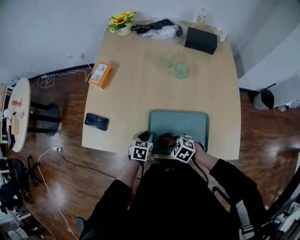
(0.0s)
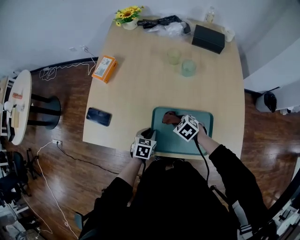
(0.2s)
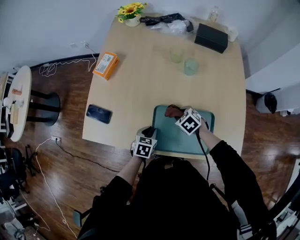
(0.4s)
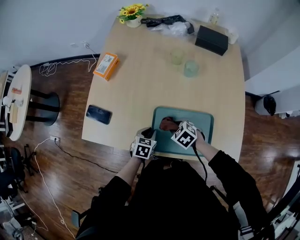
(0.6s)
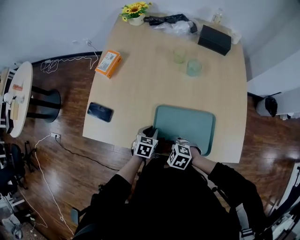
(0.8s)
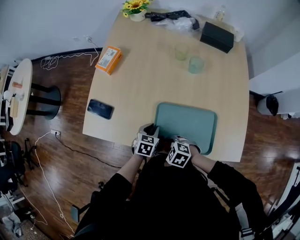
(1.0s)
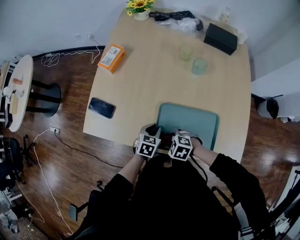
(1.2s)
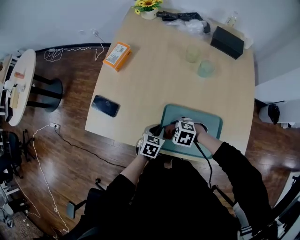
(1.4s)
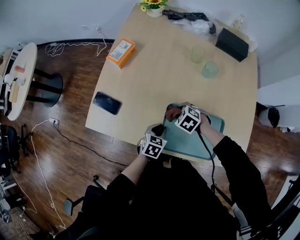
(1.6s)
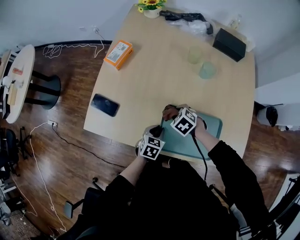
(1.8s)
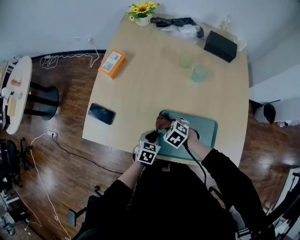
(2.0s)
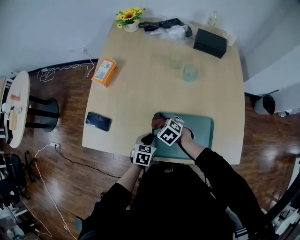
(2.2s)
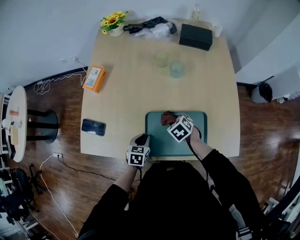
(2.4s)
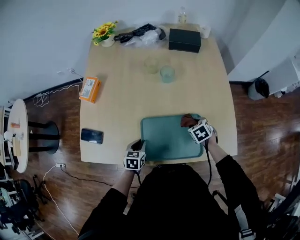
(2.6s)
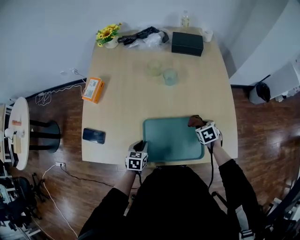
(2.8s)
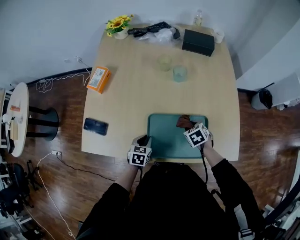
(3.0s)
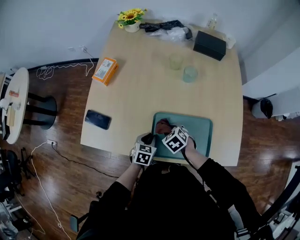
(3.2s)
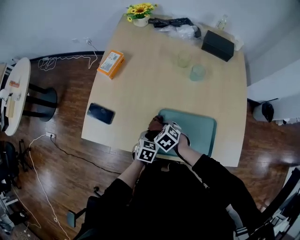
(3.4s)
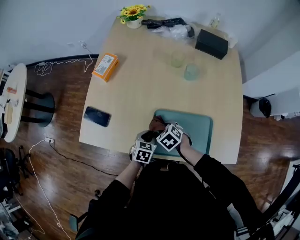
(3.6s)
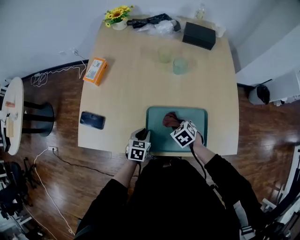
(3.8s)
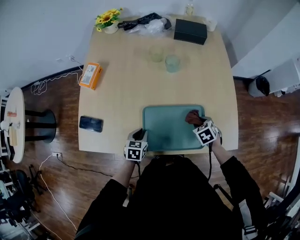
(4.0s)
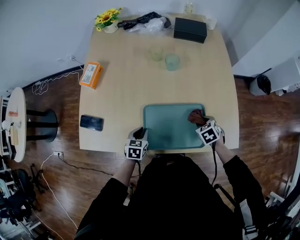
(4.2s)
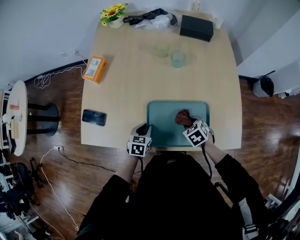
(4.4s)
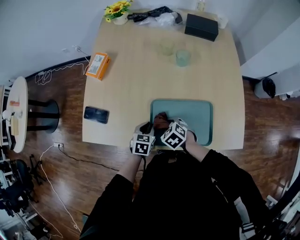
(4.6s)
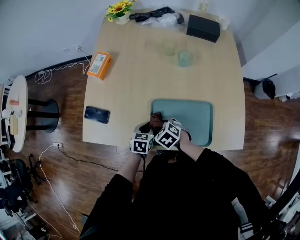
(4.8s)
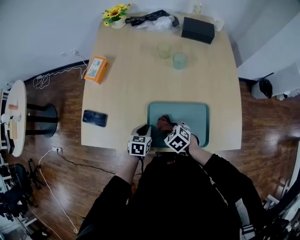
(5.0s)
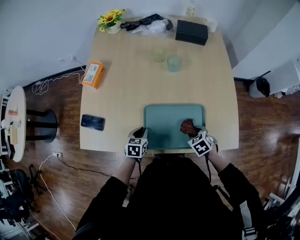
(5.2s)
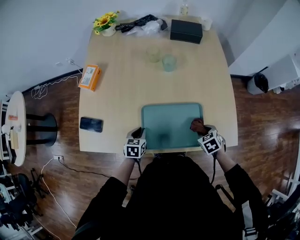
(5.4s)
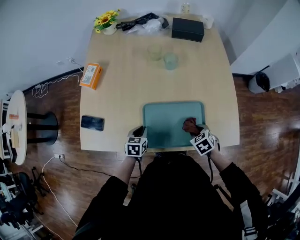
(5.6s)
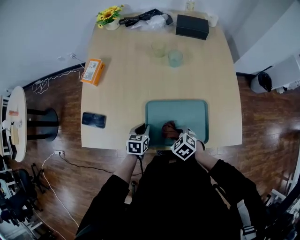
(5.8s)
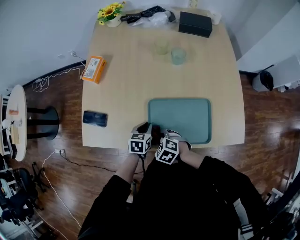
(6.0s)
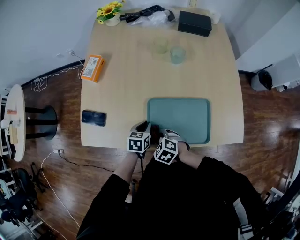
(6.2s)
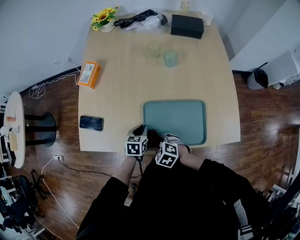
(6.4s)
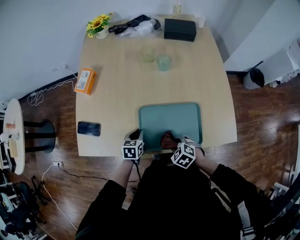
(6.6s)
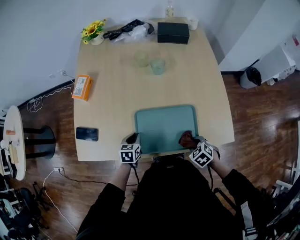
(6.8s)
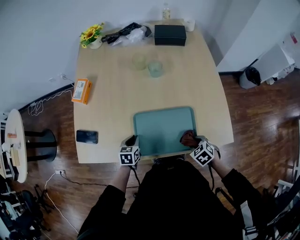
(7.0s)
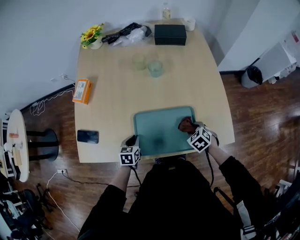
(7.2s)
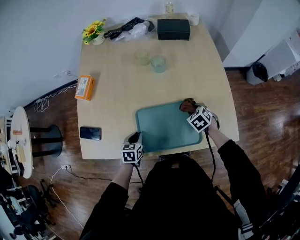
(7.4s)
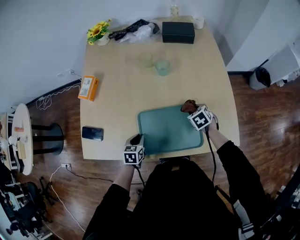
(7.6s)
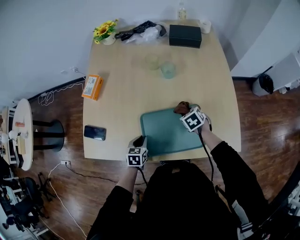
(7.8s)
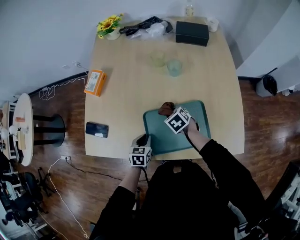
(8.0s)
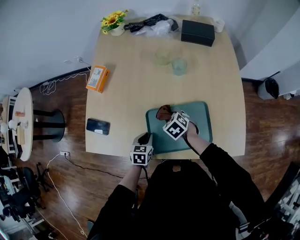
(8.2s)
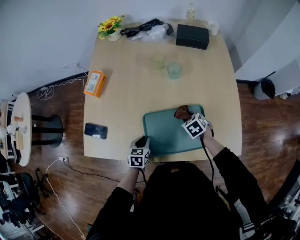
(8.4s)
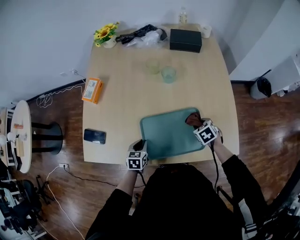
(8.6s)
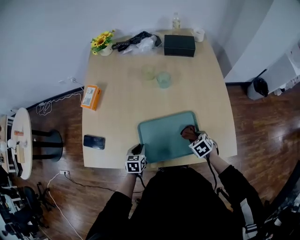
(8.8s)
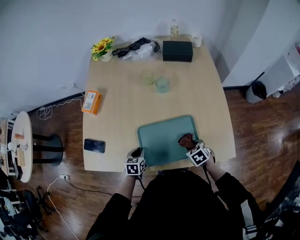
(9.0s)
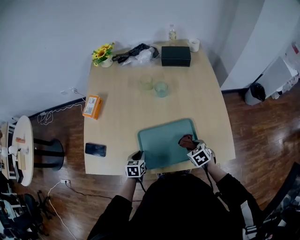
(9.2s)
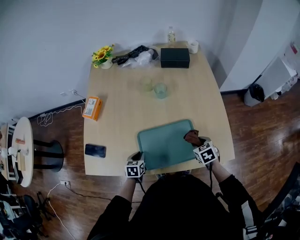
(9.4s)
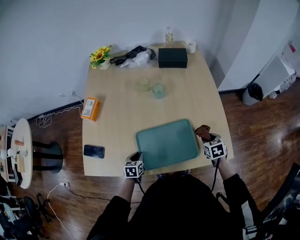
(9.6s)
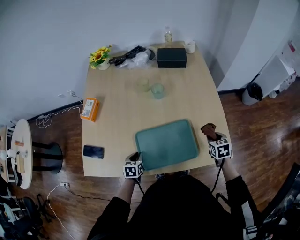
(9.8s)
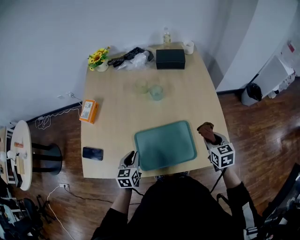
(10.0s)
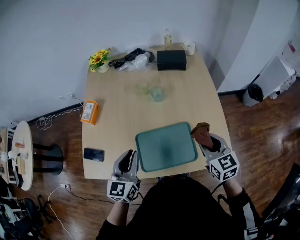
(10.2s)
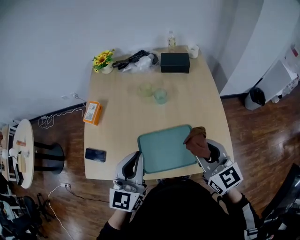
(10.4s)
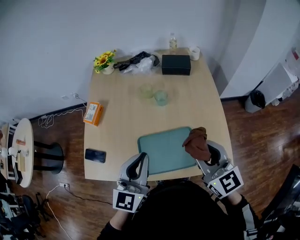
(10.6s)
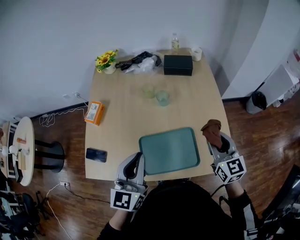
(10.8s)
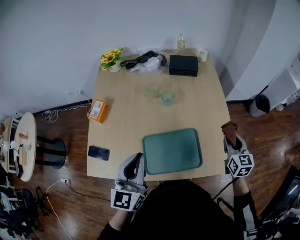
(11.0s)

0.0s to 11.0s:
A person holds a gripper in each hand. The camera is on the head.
0.0s to 1.6s: The right gripper swings forward and backward, approximately 15 cm each way, with 2 reversals.
1.6s to 3.2s: The right gripper rotates some 20 degrees.
3.2s to 4.8s: The right gripper swings left and right, some 30 cm each way, with 2 reversals.
4.8s to 6.2s: The right gripper shifts about 5 cm backward, and travels to the right and back again, roughly 25 cm each way.
6.2s to 7.8s: The right gripper shifts roughly 30 cm to the right and forward, and rotates approximately 30 degrees.
7.8s to 9.4s: The right gripper moves backward, about 10 cm, and reaches some 15 cm to the left, then returns.
9.4s to 11.0s: The right gripper travels upward and to the right by about 20 cm, and tips its fingers upward by about 30 degrees. Meanwhile the left gripper travels upward by about 35 cm, and tilts its fingers some 50 degrees upward.

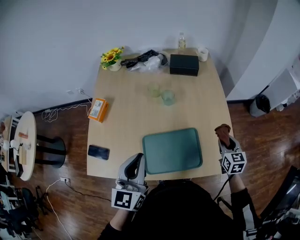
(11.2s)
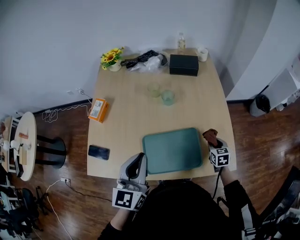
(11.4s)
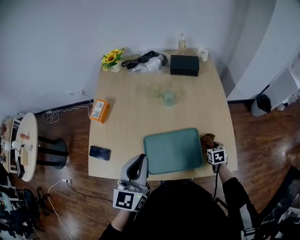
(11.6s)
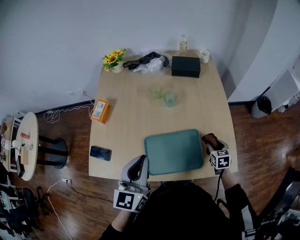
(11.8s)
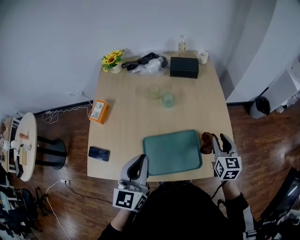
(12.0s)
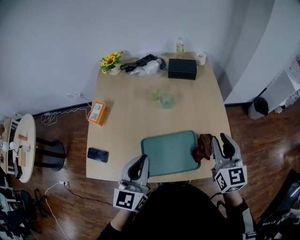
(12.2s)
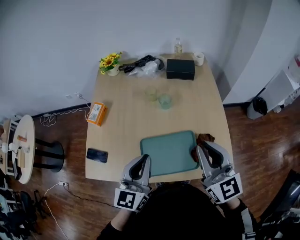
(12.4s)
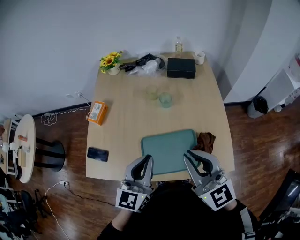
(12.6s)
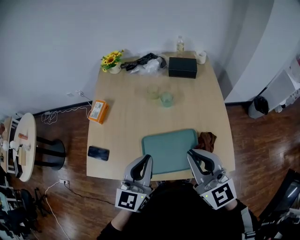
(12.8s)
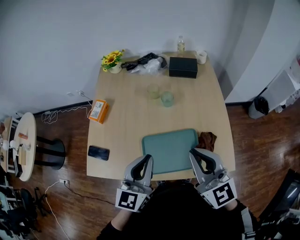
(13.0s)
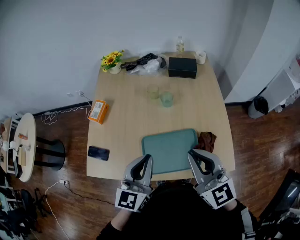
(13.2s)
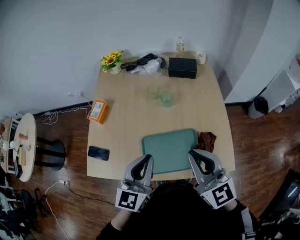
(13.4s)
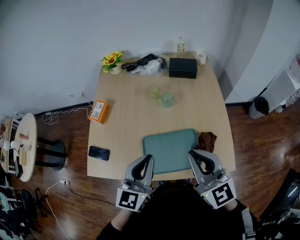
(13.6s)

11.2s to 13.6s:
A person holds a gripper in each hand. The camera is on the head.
11.2s to 12.4s: The right gripper heads upward and to the left, covering approximately 30 cm, and changes its angle by some 30 degrees.
12.4s to 13.6s: The right gripper changes place by roughly 5 cm.

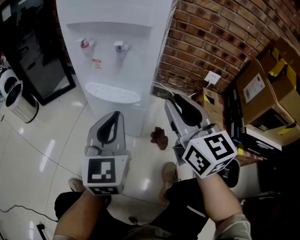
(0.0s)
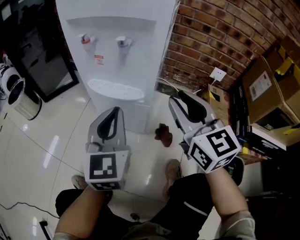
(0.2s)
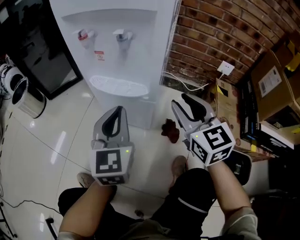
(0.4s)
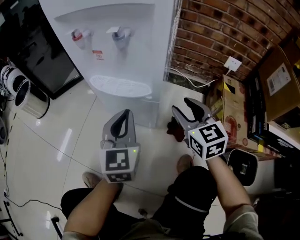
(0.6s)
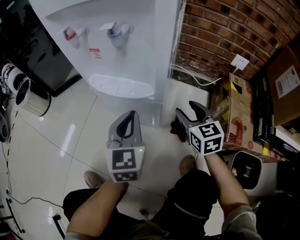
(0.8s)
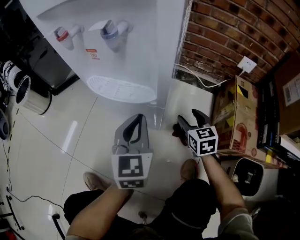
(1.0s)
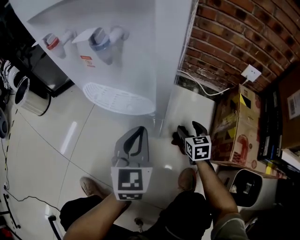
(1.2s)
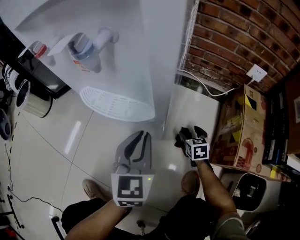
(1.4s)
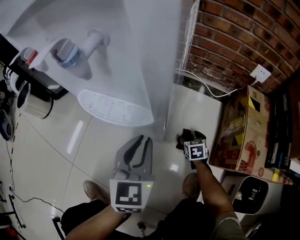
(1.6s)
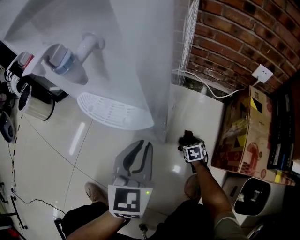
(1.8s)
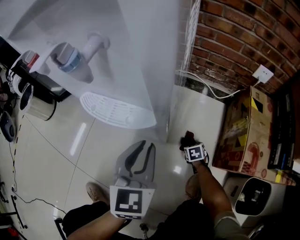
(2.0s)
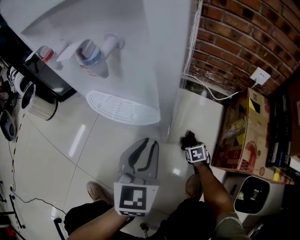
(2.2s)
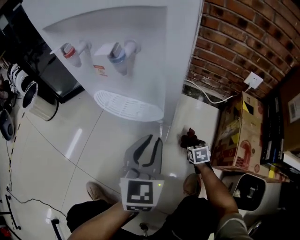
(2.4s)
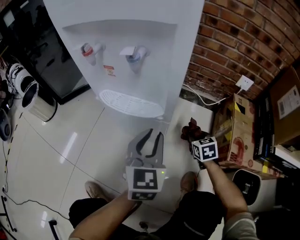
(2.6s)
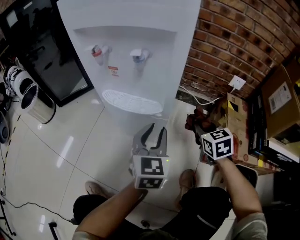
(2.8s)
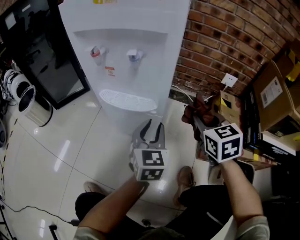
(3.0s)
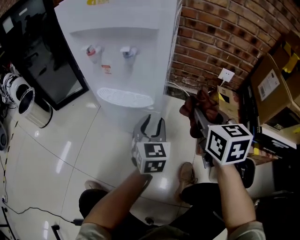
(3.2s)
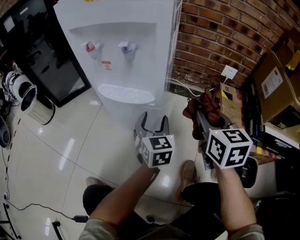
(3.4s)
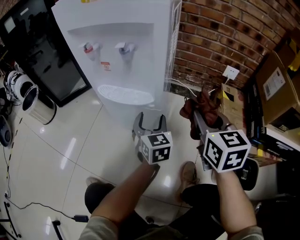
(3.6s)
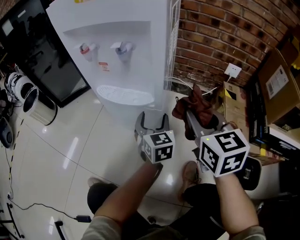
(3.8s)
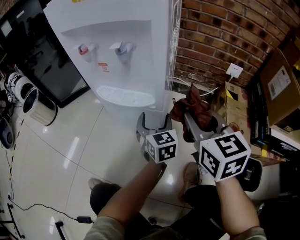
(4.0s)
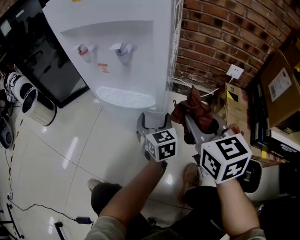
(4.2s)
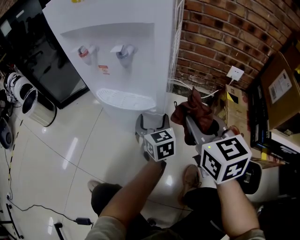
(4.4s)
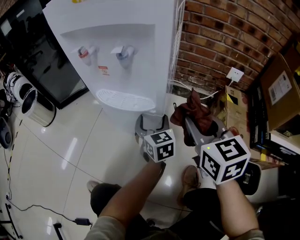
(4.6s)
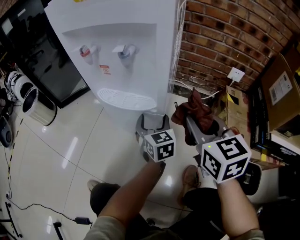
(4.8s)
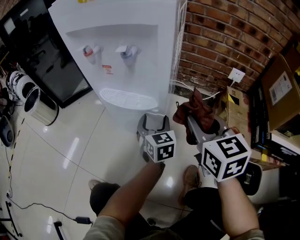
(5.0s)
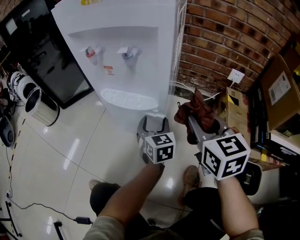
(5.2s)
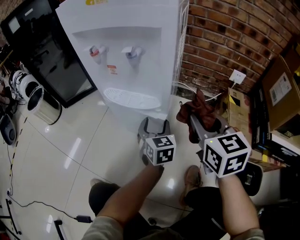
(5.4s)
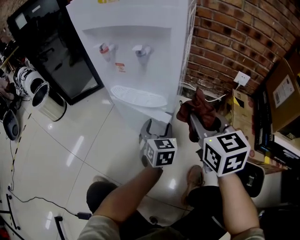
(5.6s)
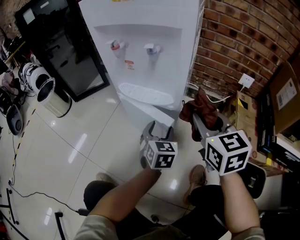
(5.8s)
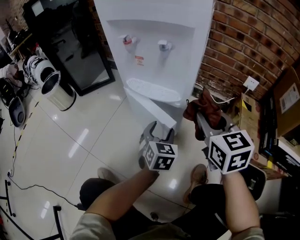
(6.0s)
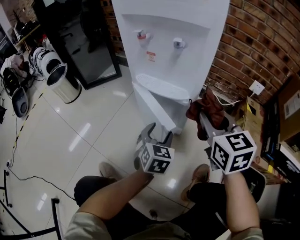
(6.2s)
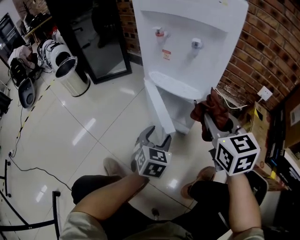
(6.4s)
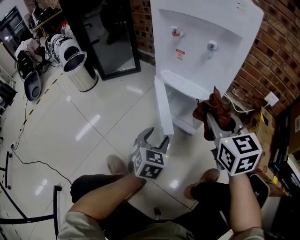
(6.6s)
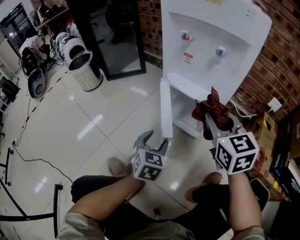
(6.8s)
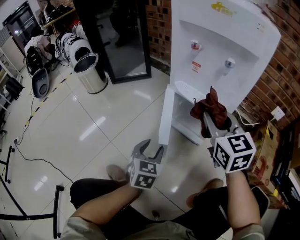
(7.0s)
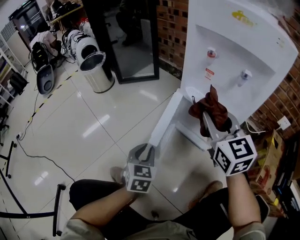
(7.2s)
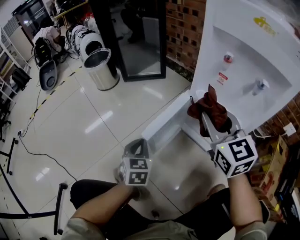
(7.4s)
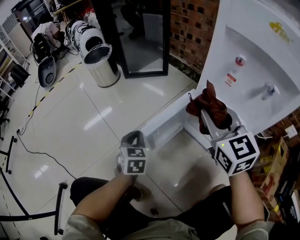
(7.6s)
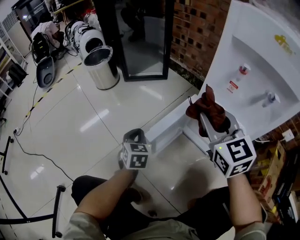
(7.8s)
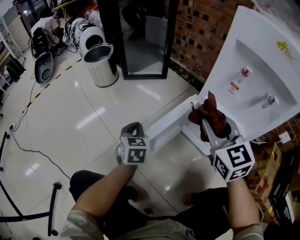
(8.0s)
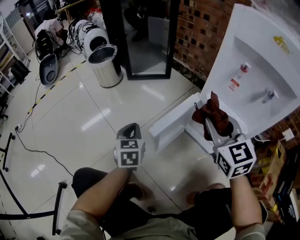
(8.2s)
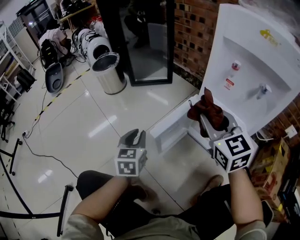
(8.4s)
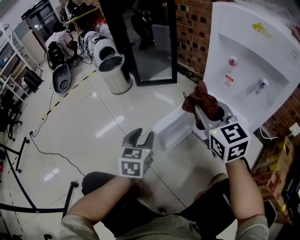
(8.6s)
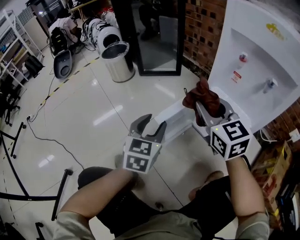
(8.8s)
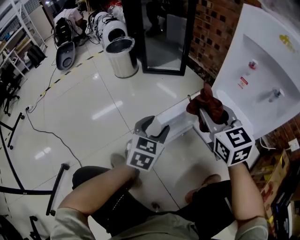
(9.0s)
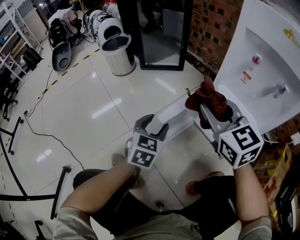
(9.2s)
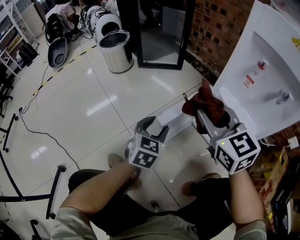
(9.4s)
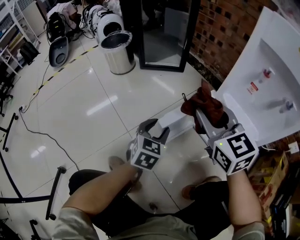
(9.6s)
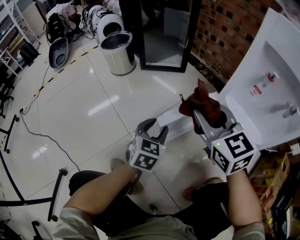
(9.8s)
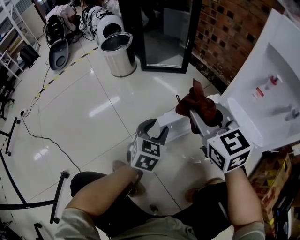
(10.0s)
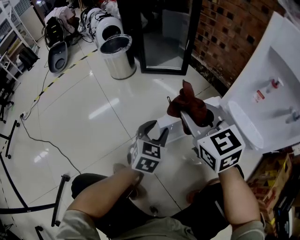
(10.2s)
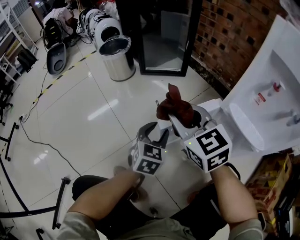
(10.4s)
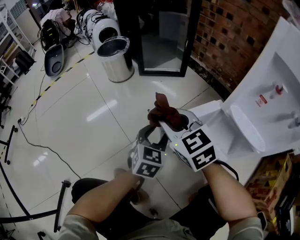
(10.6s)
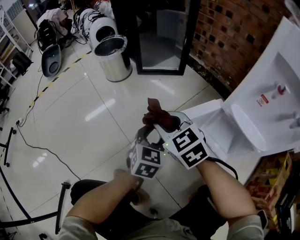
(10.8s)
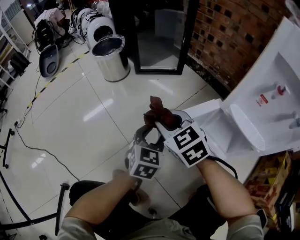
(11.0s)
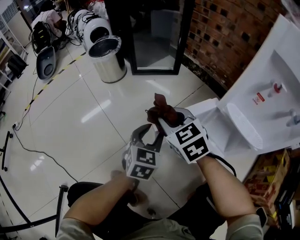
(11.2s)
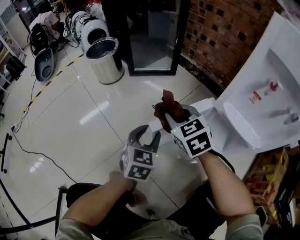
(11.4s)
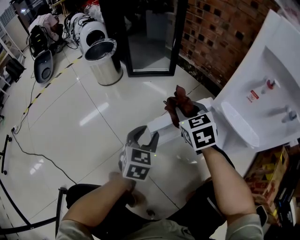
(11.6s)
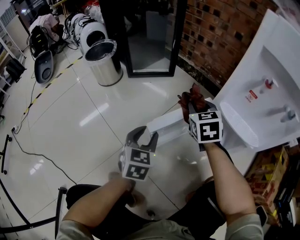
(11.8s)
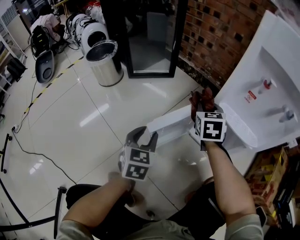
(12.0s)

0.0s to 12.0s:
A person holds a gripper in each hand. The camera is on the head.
0.0s to 1.6s: The right gripper is displaced downward by about 50 cm, angles its fingers downward, by about 50 degrees, and opens its fingers, while the left gripper moves downward and forward, some 20 cm.
1.6s to 3.0s: The right gripper heads upward, covering about 40 cm, turns by roughly 20 degrees, and closes up. The left gripper shifts by about 5 cm.
3.0s to 4.4s: The right gripper changes place by about 5 cm, while the left gripper shifts about 10 cm downward and forward, swivels some 20 degrees, and opens its fingers.
4.4s to 6.0s: The left gripper moves backward and to the left, some 10 cm.
6.0s to 7.6s: The left gripper moves some 35 cm, changes its angle by about 30 degrees, and closes; the right gripper changes place by about 25 cm, and turns by about 30 degrees.
7.6s to 9.0s: The right gripper goes approximately 5 cm to the left. Meanwhile the left gripper moves upward, approximately 10 cm, and opens.
9.0s to 10.4s: The left gripper shifts roughly 10 cm forward and downward. The right gripper moves to the left and forward, roughly 15 cm.
10.4s to 12.0s: The right gripper travels to the right, downward and forward by roughly 20 cm, and rotates about 40 degrees.
